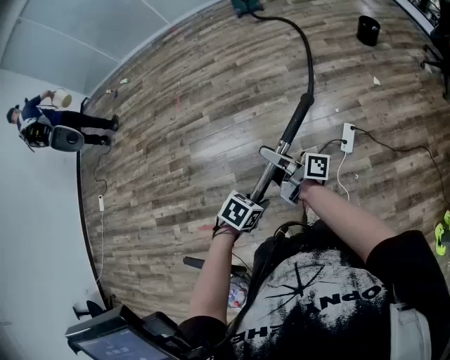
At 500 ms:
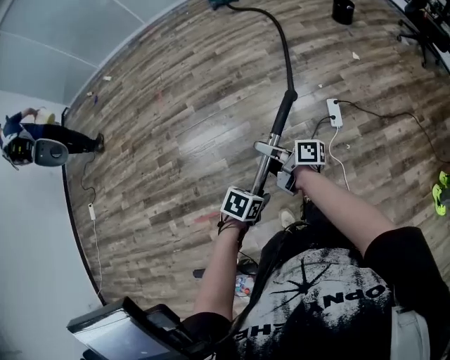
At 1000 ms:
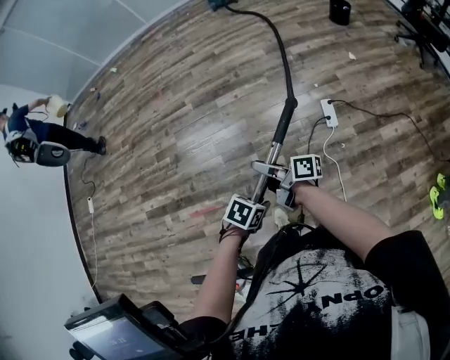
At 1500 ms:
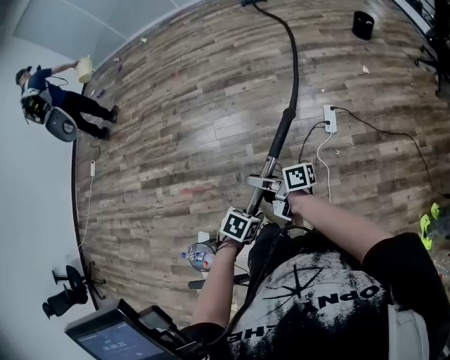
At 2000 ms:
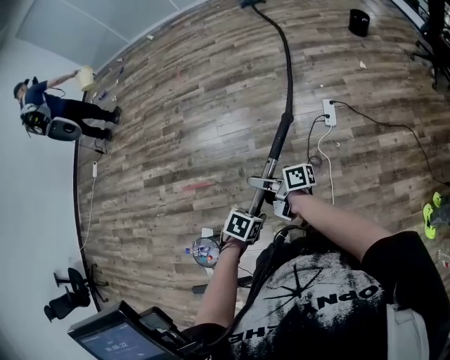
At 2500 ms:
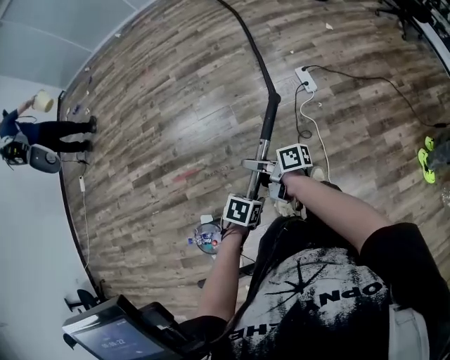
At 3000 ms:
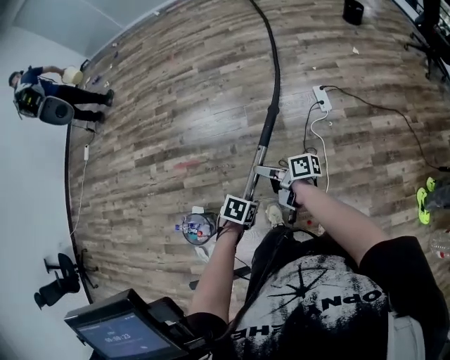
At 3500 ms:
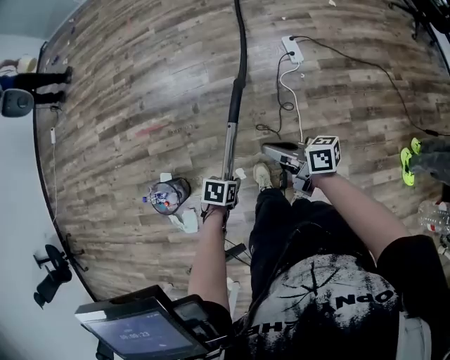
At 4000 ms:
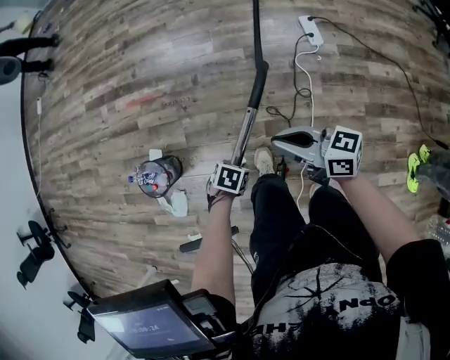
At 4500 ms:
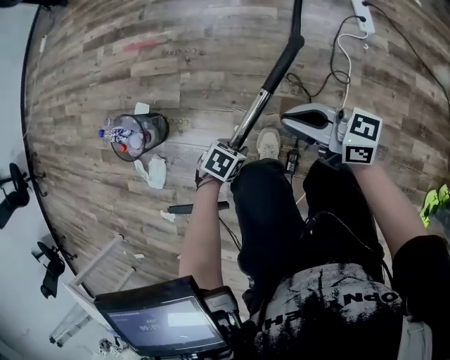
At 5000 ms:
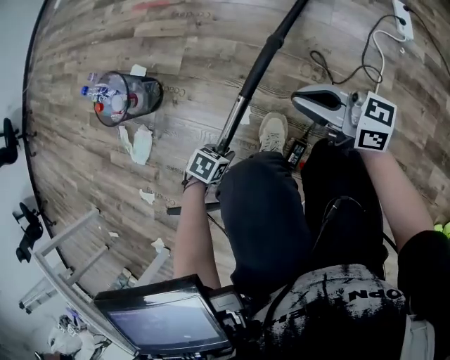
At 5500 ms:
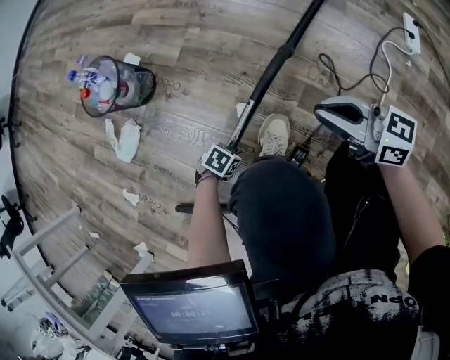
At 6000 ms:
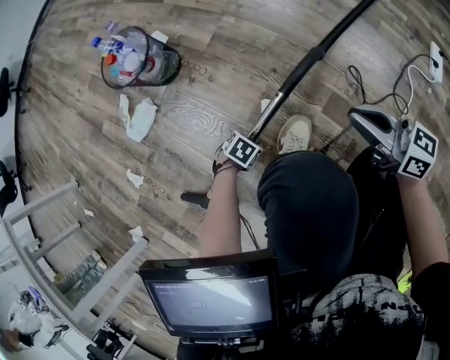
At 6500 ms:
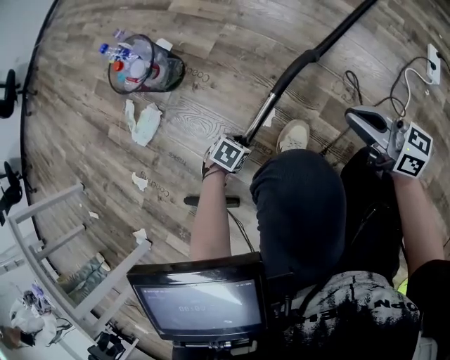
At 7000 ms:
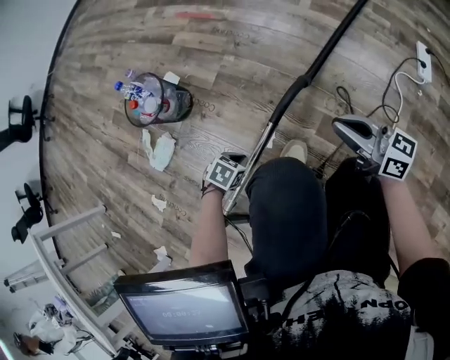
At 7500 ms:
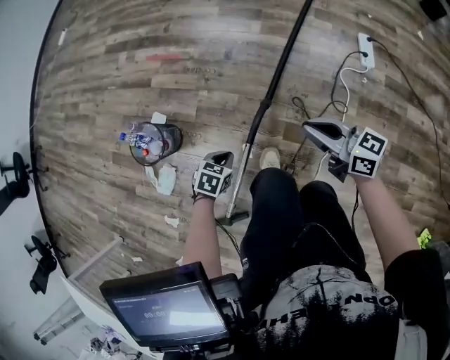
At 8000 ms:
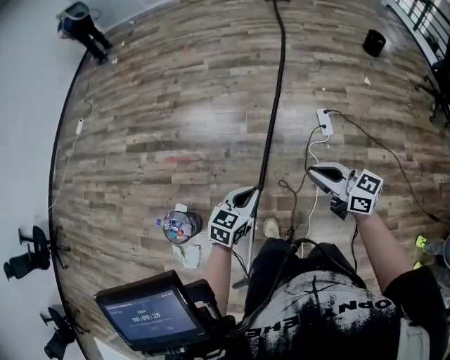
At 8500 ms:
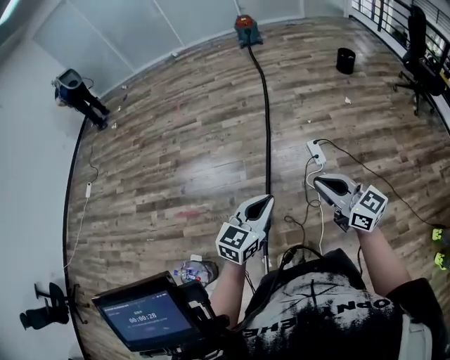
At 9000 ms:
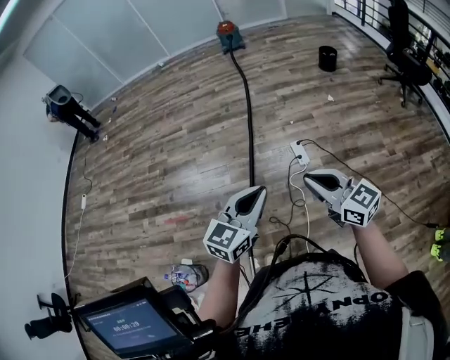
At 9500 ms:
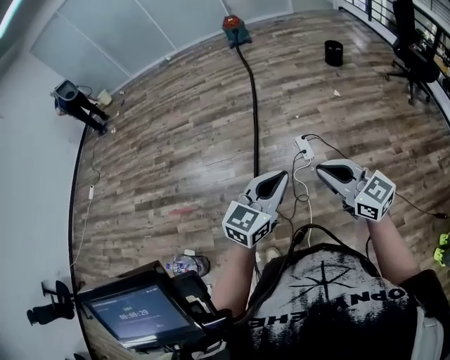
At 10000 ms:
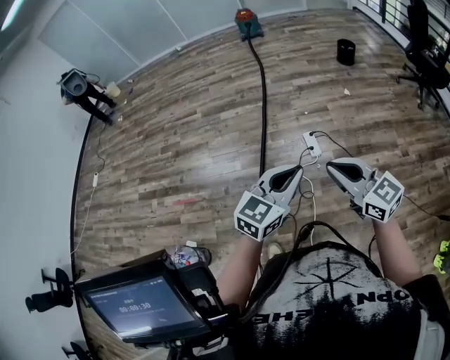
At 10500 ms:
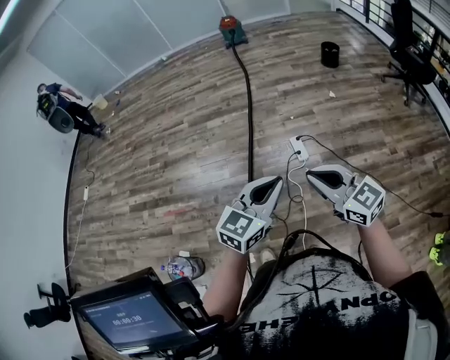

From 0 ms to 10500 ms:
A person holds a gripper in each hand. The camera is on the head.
From 0 ms to 2000 ms: The left gripper shifts by about 40 cm. Meanwhile the right gripper shifts by some 40 cm, and rotates some 30 degrees.
From 2000 ms to 4000 ms: The right gripper ends up some 25 cm from where it was, rotates some 40 degrees, and closes, while the left gripper goes about 25 cm downward.
From 4000 ms to 6500 ms: The grippers both shift downward by roughly 40 cm. The left gripper swivels roughly 20 degrees, and opens; the right gripper swivels about 30 degrees.
From 6500 ms to 8500 ms: The grippers both shift upward by approximately 80 cm. The right gripper swivels approximately 60 degrees. The left gripper tips its fingers upward by about 60 degrees, and closes its fingers.
From 8500 ms to 10500 ms: Both grippers move to the right, roughly 15 cm.

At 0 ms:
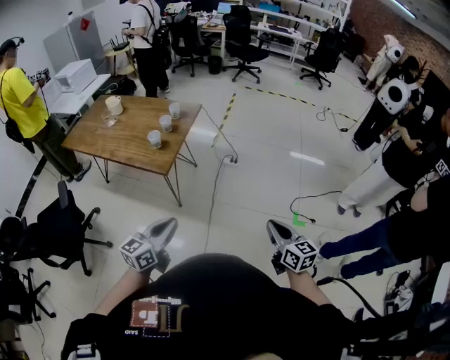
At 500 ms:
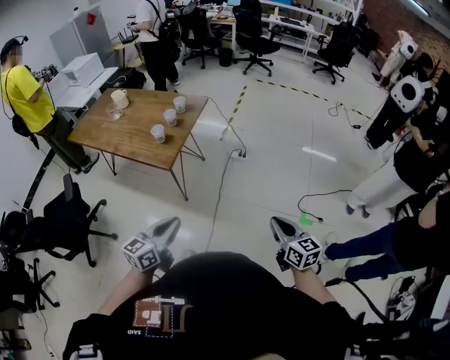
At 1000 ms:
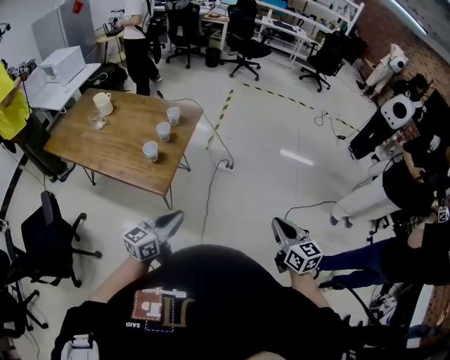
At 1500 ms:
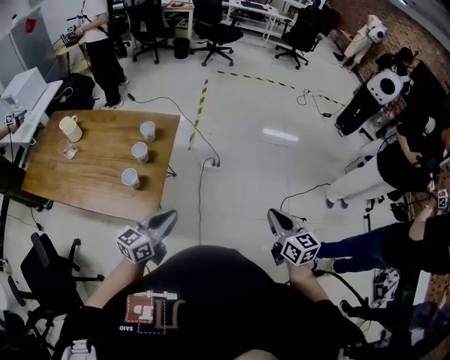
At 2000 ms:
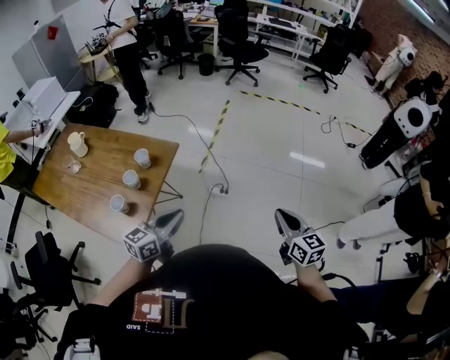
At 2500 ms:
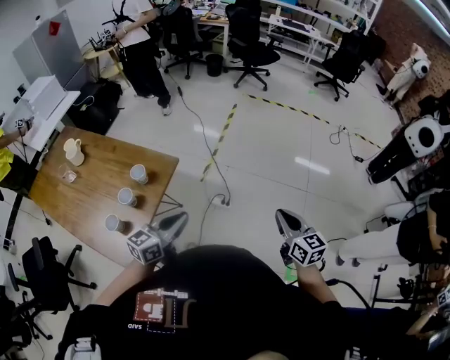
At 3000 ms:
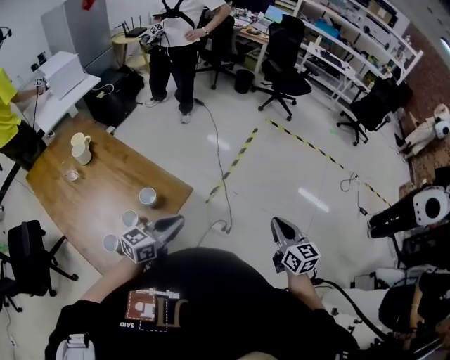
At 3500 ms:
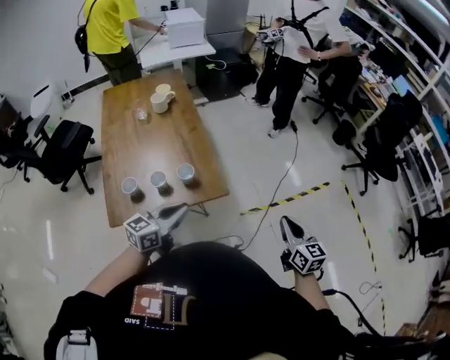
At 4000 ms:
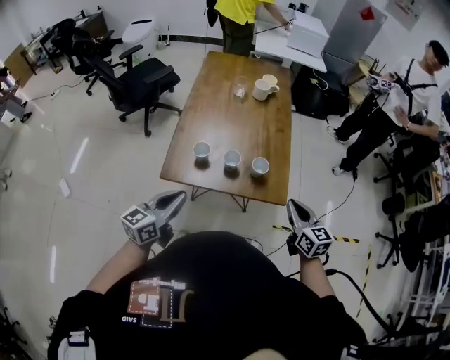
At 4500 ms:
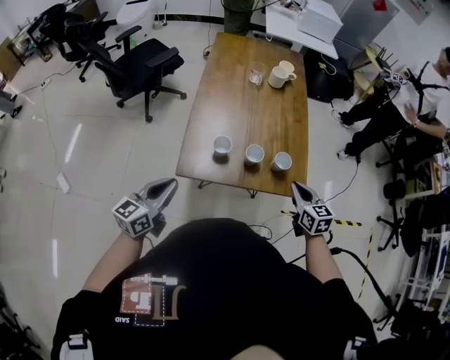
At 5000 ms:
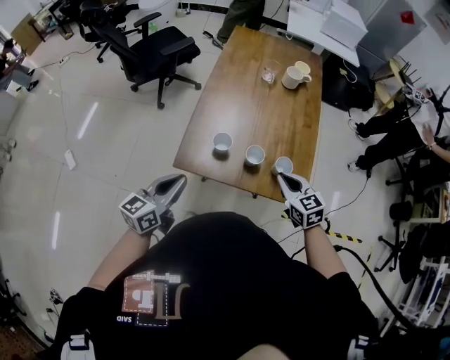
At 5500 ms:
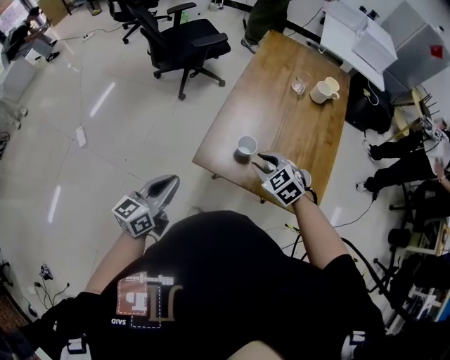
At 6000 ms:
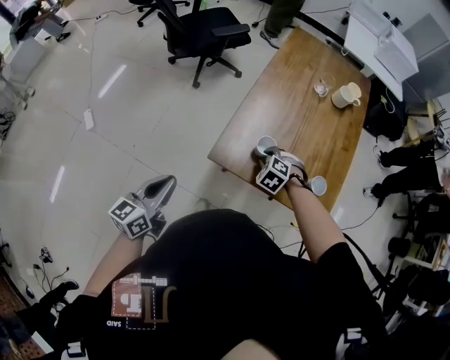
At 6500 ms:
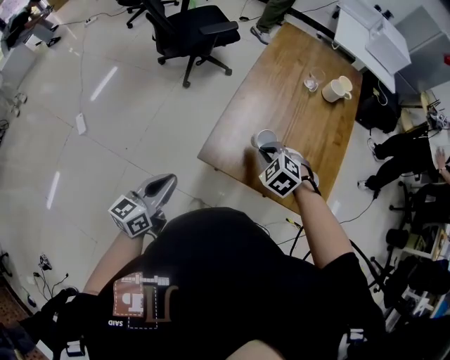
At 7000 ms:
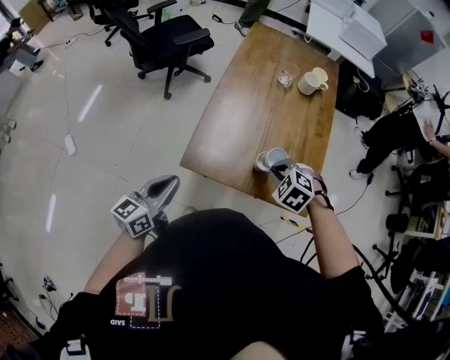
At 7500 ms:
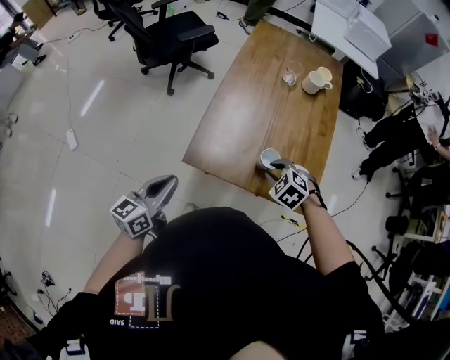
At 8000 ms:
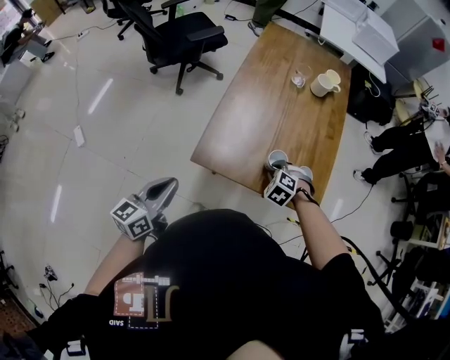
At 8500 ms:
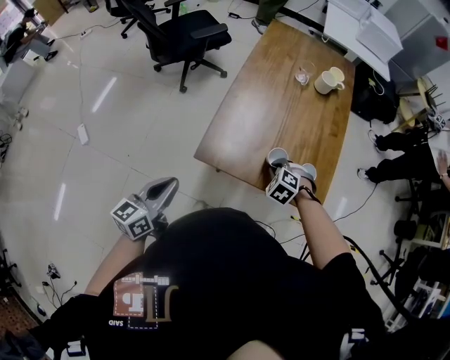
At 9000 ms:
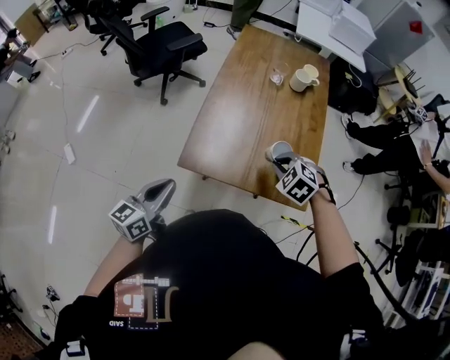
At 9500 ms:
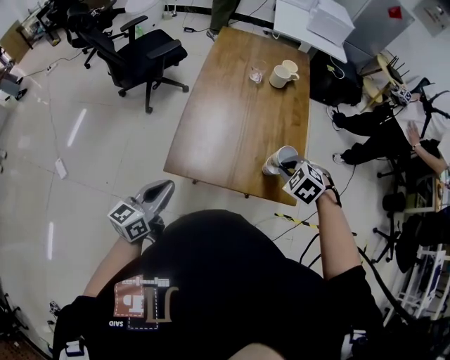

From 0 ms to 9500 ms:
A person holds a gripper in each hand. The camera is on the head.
From 0 ms to 2000 ms: The pair of grippers is taken forward, approximately 40 cm.
From 2000 ms to 4000 ms: The right gripper changes place by about 50 cm, and rotates roughly 80 degrees. The left gripper turns by some 80 degrees.
From 4000 ms to 5500 ms: The right gripper ends up some 35 cm from where it was, turns by some 60 degrees, and opens up; the left gripper shifts by roughly 15 cm.
From 5500 ms to 7500 ms: The right gripper goes approximately 10 cm to the right, changes its angle by approximately 20 degrees, and closes, then opens again. Meanwhile the left gripper reaches some 5 cm to the left, then returns.
From 7500 ms to 9500 ms: The left gripper heads to the right, covering about 5 cm, while the right gripper goes some 10 cm to the right and upward.

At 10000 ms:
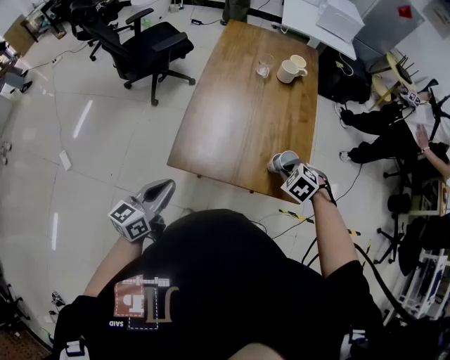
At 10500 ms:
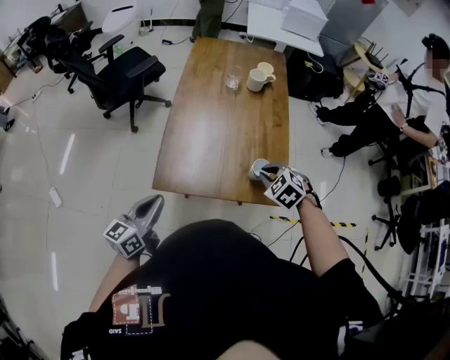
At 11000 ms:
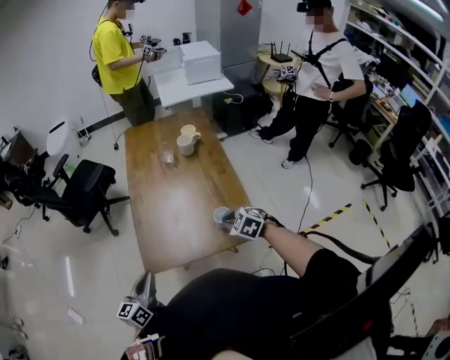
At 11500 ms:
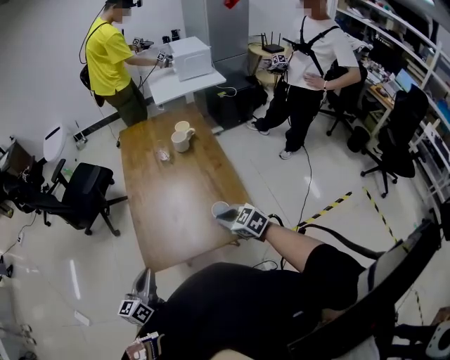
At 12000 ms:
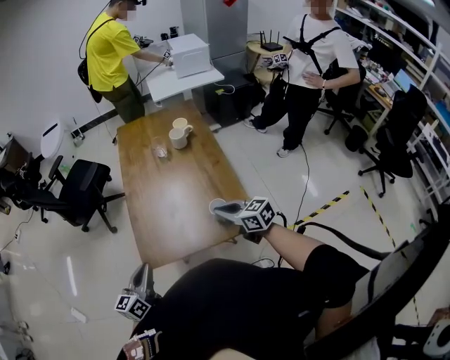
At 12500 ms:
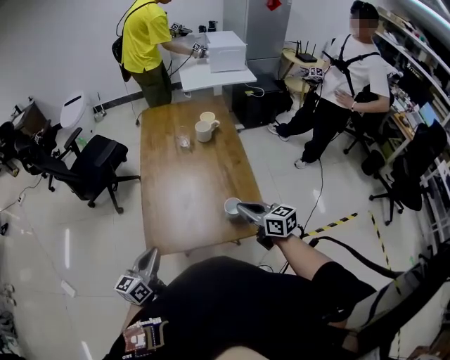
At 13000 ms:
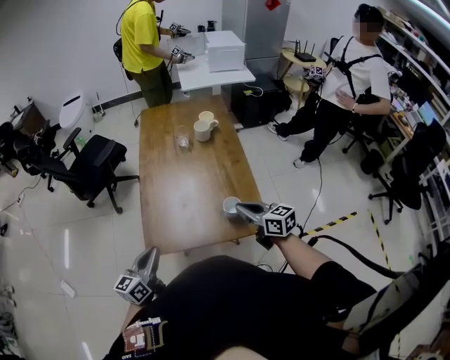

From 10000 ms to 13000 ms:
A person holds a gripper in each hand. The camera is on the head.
From 10000 ms to 11500 ms: The right gripper travels upward by approximately 5 cm, and angles its fingers upward, by about 30 degrees.
From 11500 ms to 13000 ms: The right gripper moves approximately 5 cm, and swivels some 30 degrees.

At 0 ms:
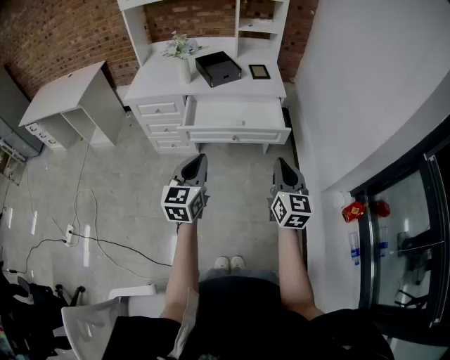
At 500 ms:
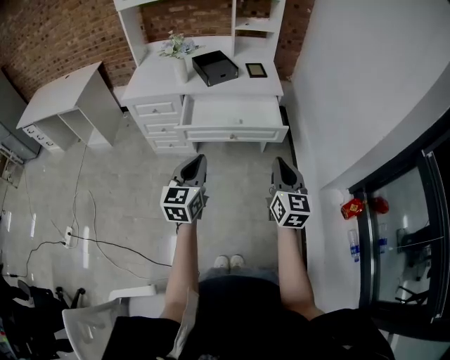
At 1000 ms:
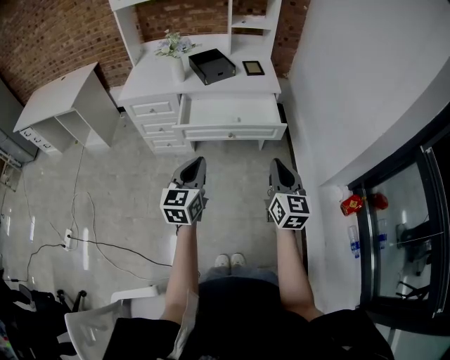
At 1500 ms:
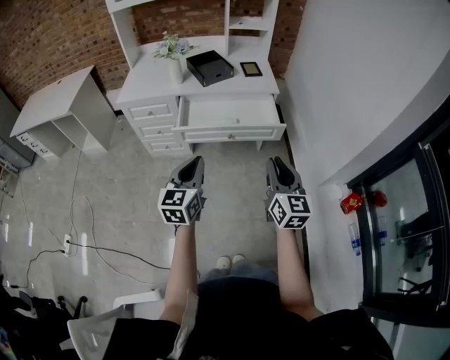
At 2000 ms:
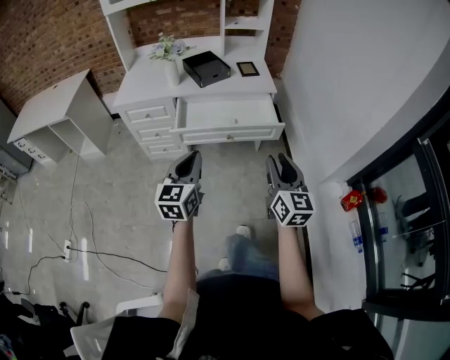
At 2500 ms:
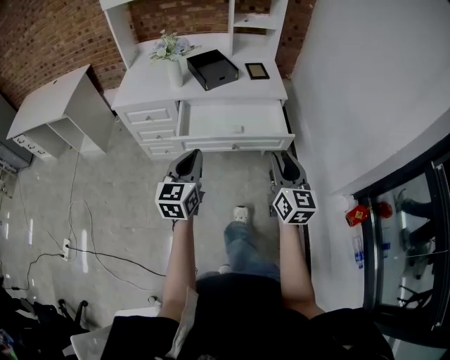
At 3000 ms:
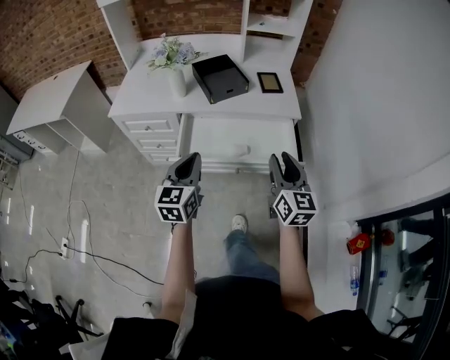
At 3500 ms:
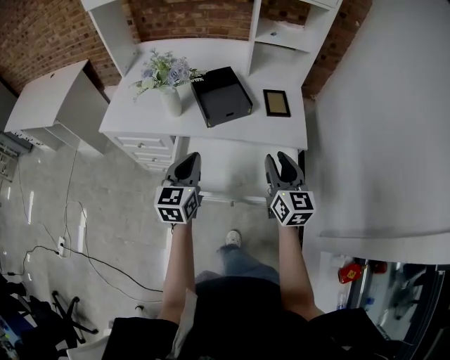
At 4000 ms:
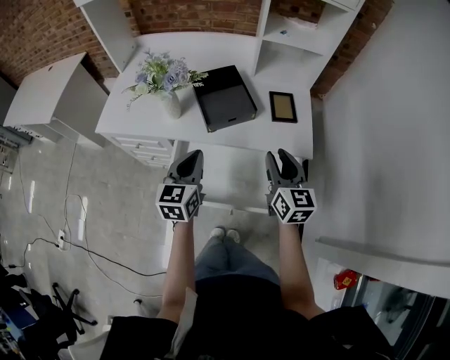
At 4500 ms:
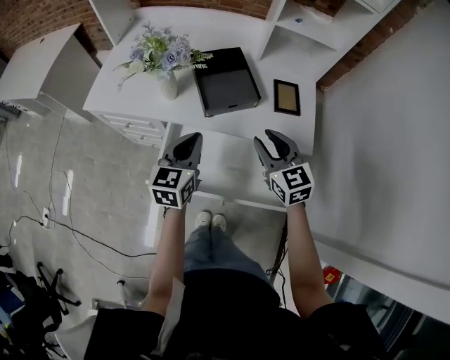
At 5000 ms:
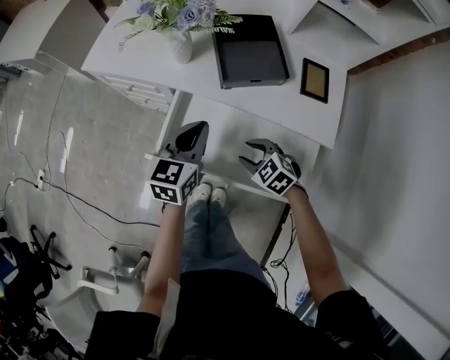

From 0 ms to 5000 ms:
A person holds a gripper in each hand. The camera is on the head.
From 0 ms to 2500 ms: Both grippers travel together forward, about 10 cm. The right gripper opens up.
From 2500 ms to 5000 ms: The right gripper shifts by roughly 50 cm, and tips its fingers downward by some 50 degrees. The left gripper ends up roughly 40 cm from where it was.
